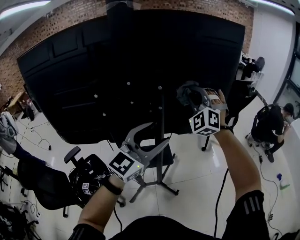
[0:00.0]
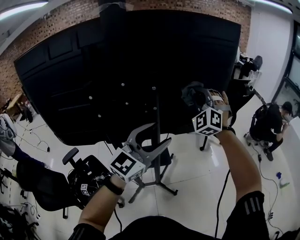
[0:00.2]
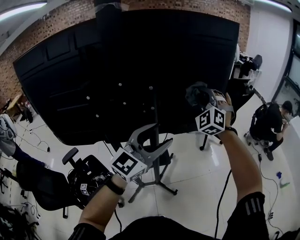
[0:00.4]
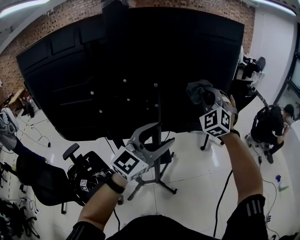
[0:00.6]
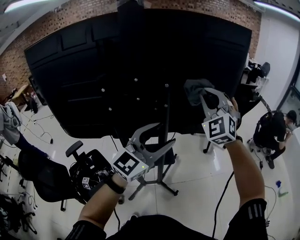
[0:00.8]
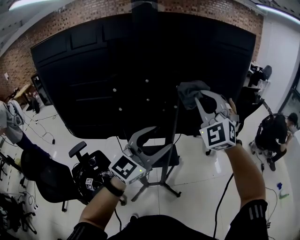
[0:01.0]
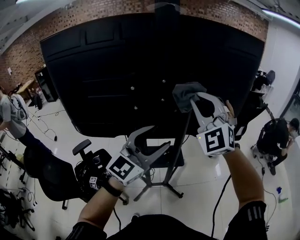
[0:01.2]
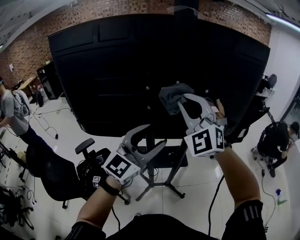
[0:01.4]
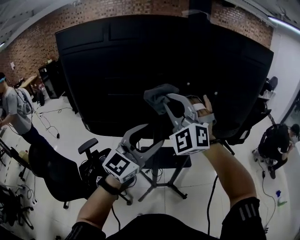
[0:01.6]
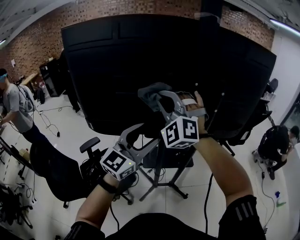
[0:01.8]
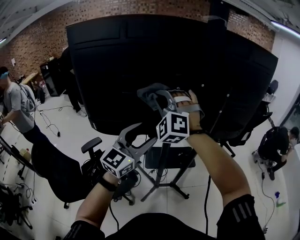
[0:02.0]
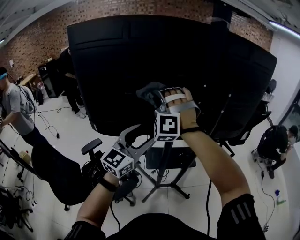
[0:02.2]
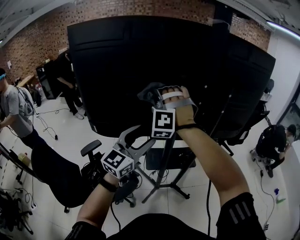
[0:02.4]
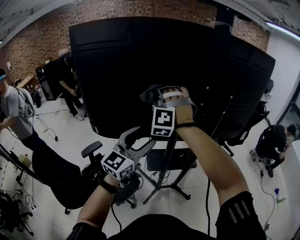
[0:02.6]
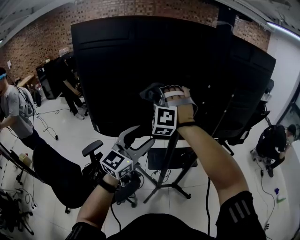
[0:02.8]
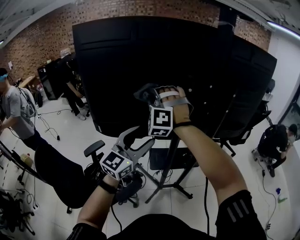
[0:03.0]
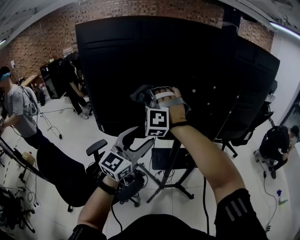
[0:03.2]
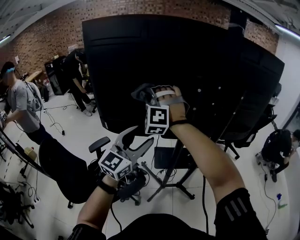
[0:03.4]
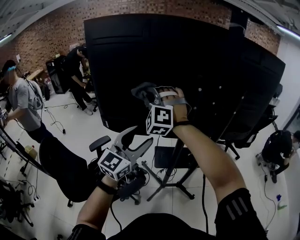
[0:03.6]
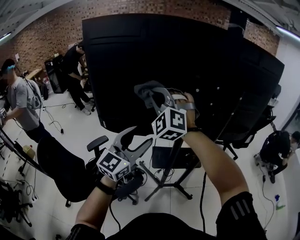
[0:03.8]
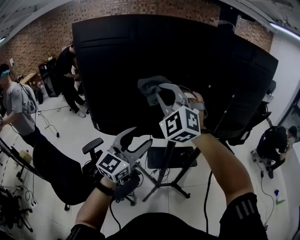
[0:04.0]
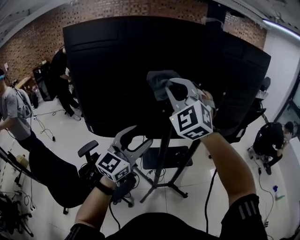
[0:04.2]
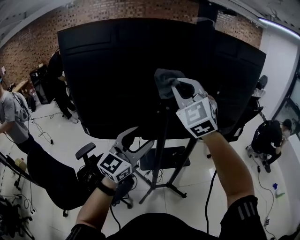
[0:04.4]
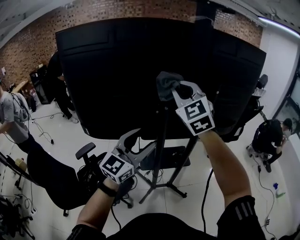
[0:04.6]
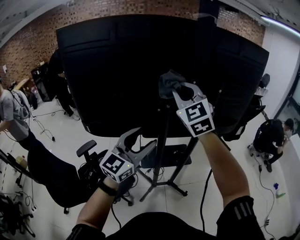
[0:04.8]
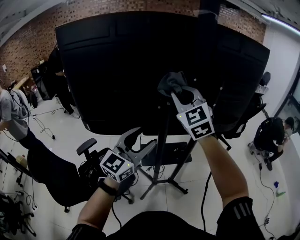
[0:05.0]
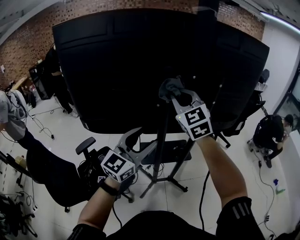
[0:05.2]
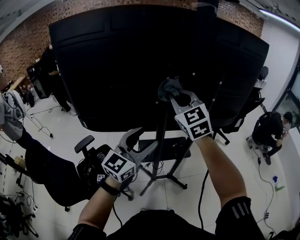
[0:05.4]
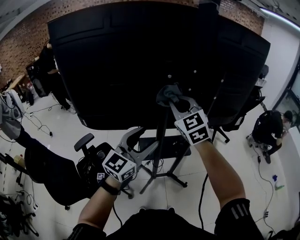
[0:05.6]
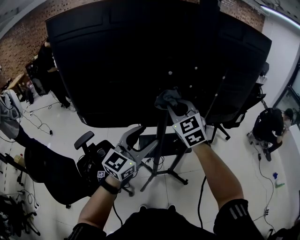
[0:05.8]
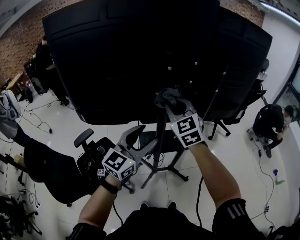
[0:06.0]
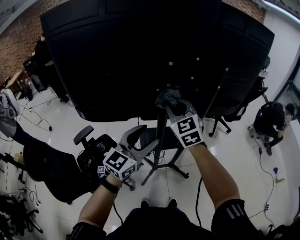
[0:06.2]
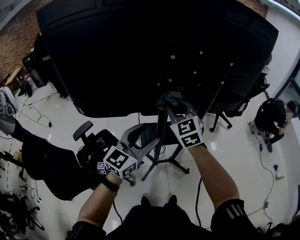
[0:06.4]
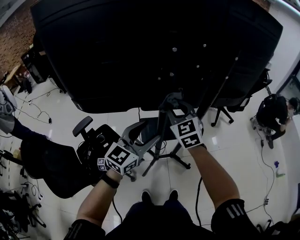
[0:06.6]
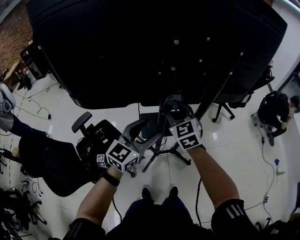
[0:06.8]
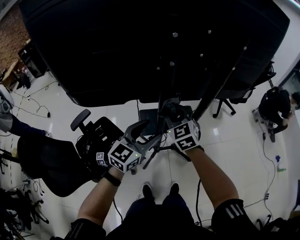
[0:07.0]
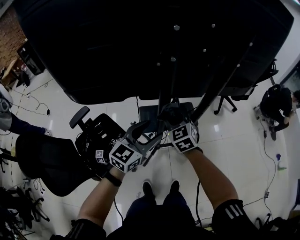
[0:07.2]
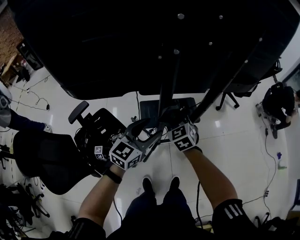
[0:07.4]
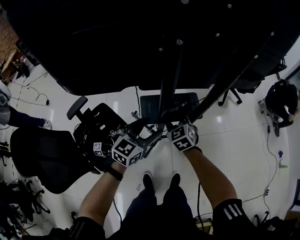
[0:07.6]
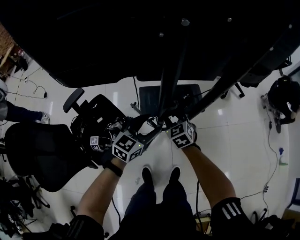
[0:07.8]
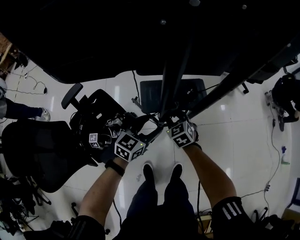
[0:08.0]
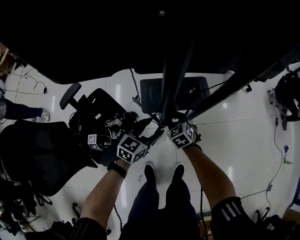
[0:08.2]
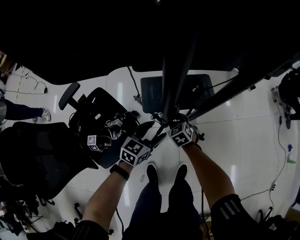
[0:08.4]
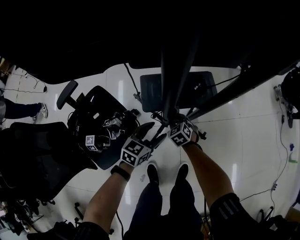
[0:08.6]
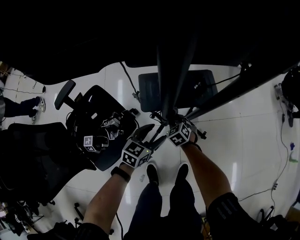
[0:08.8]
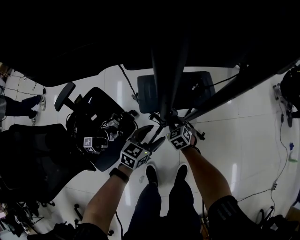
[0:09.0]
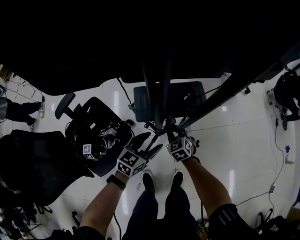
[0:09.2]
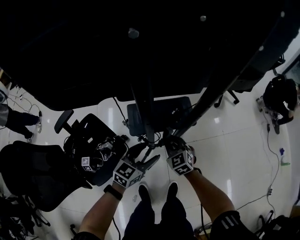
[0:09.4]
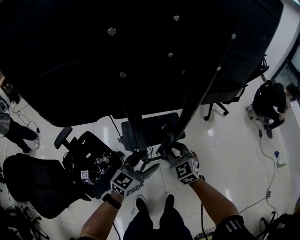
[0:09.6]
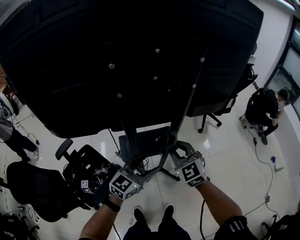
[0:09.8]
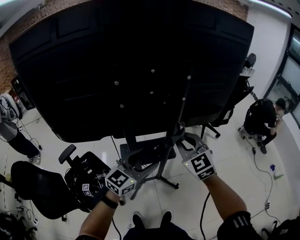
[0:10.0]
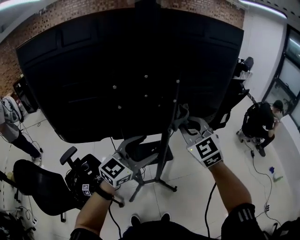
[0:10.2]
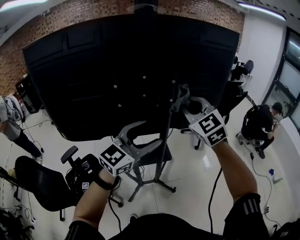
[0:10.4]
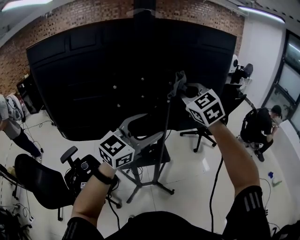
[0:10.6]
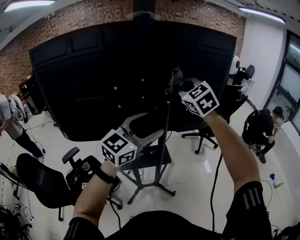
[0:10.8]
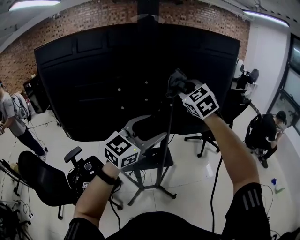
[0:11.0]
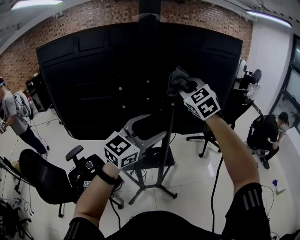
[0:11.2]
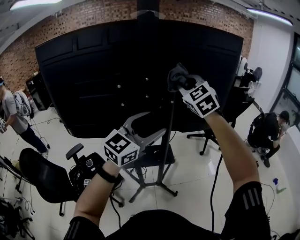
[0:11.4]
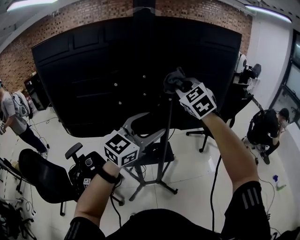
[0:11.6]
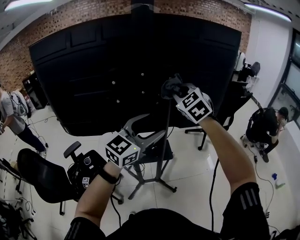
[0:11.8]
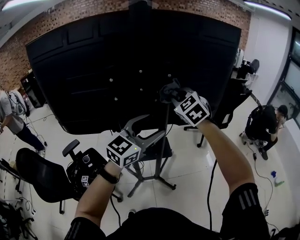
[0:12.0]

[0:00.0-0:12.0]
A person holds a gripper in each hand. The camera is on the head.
0:00.0 to 0:01.6: The right gripper shifts about 35 cm to the left and backward, and turns by about 20 degrees. Meanwhile the left gripper is displaced to the left and backward by some 20 cm.
0:01.6 to 0:03.0: The two grippers go some 15 cm to the left. The right gripper turns by roughly 30 degrees.
0:03.0 to 0:04.4: The left gripper goes roughly 5 cm to the right. Meanwhile the right gripper shifts roughly 20 cm to the right and upward, and twists some 40 degrees clockwise, seen from behind.
0:04.4 to 0:06.0: The left gripper moves downward, approximately 10 cm. Meanwhile the right gripper goes some 20 cm downward, and turns by roughly 20 degrees.
0:06.0 to 0:07.6: Both grippers travel together downward, roughly 30 cm. The right gripper swivels approximately 30 degrees, while the left gripper changes its angle by about 20 degrees.
0:07.6 to 0:09.0: The grippers both shift downward by approximately 30 cm. The right gripper closes.
0:09.0 to 0:10.4: The grippers both shift upward by approximately 70 cm. The right gripper angles its fingers upward, by some 40 degrees; the left gripper angles its fingers upward, by approximately 30 degrees.
0:10.4 to 0:12.0: The right gripper goes approximately 5 cm forward.

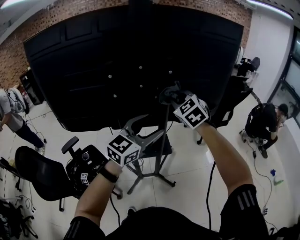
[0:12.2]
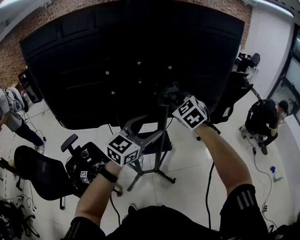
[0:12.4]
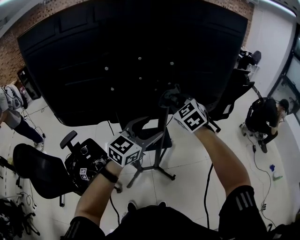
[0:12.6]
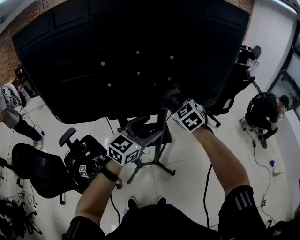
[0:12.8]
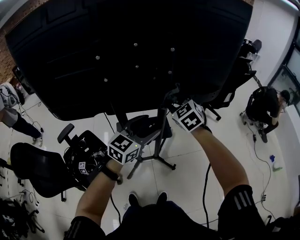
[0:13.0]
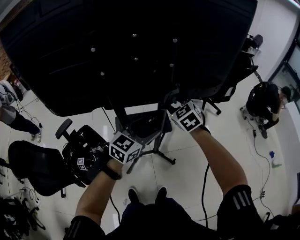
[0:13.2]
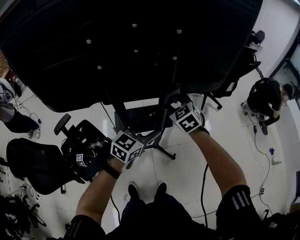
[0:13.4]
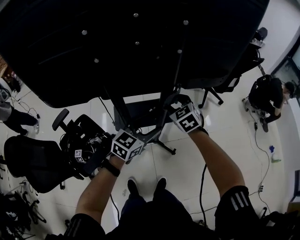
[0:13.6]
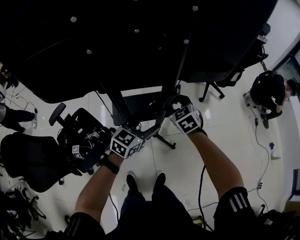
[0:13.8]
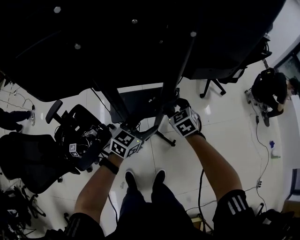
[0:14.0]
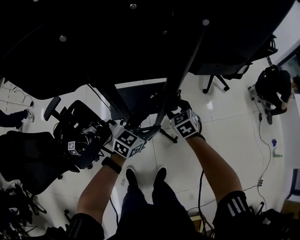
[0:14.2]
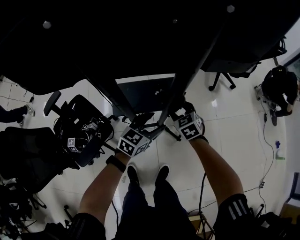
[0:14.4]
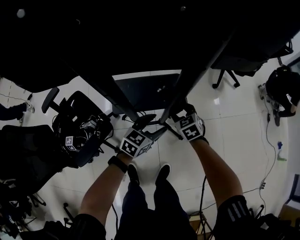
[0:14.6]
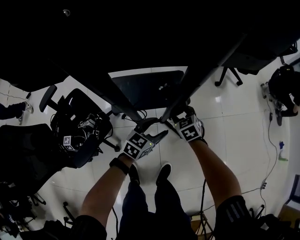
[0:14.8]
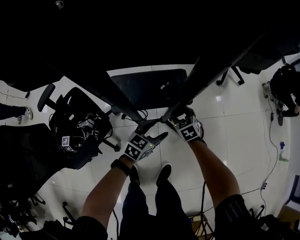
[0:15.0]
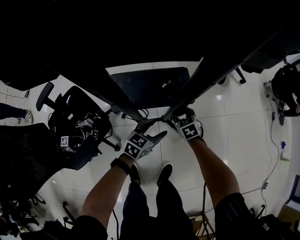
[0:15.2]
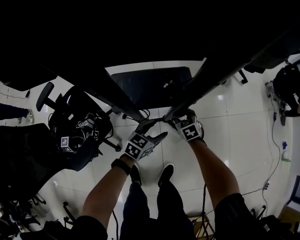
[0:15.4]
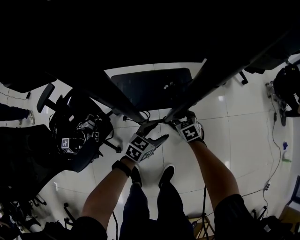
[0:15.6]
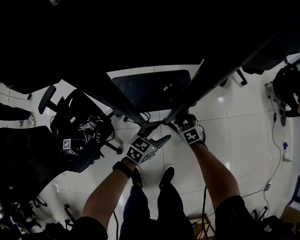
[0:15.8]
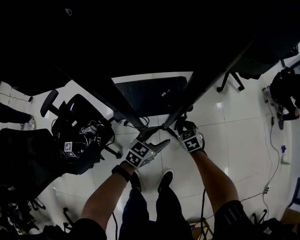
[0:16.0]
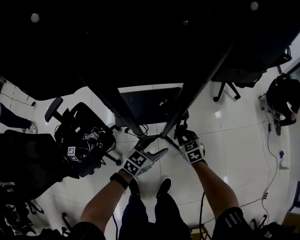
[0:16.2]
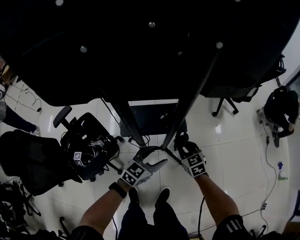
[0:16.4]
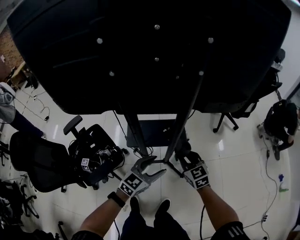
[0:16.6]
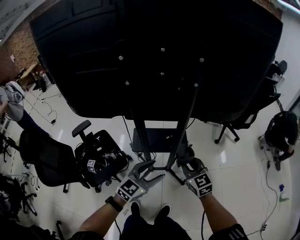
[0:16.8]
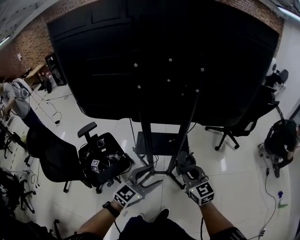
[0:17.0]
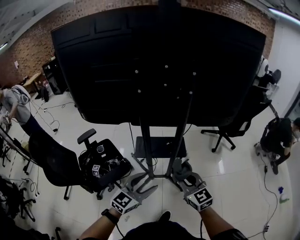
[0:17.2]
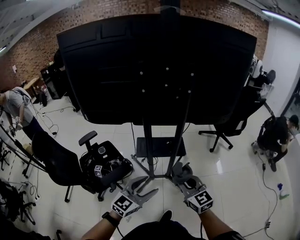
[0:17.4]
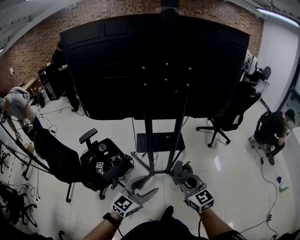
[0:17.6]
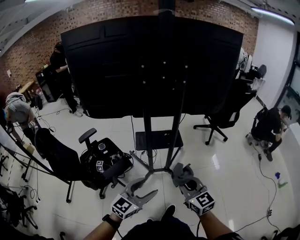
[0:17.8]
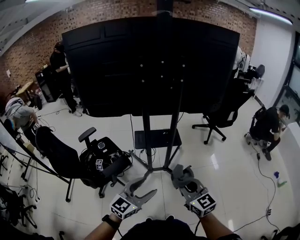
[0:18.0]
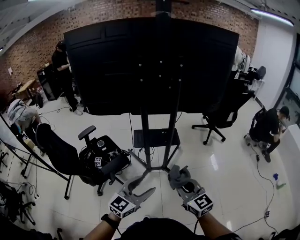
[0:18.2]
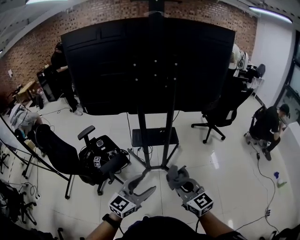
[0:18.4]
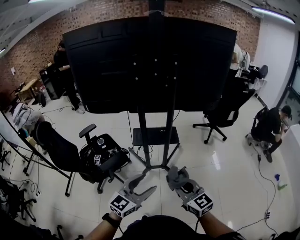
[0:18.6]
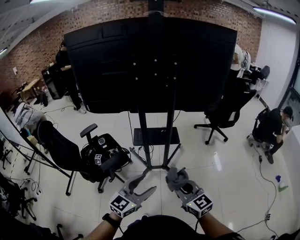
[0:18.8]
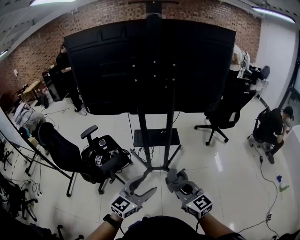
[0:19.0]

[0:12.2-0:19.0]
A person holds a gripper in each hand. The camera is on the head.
0:12.2 to 0:13.6: The grippers both shift downward by about 25 cm. The right gripper opens up. The left gripper rotates some 20 degrees.
0:13.6 to 0:15.0: The grippers both shift downward by some 35 cm.
0:15.0 to 0:16.2: Both grippers travel together upward, about 5 cm. The right gripper closes up.
0:16.2 to 0:17.6: The left gripper shifts some 50 cm backward and upward, and rotates some 30 degrees. Meanwhile the right gripper moves upward and backward, approximately 50 cm, and angles its fingers upward, by approximately 30 degrees.
0:17.6 to 0:19.0: The left gripper shifts approximately 10 cm backward and to the right. Meanwhile the right gripper is displaced backward by roughly 10 cm.

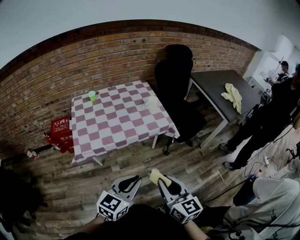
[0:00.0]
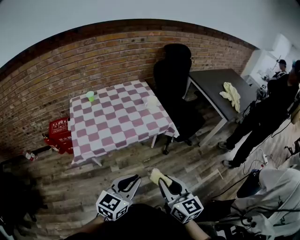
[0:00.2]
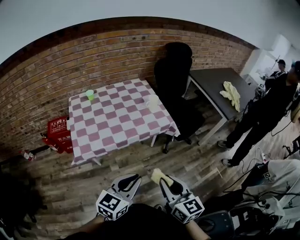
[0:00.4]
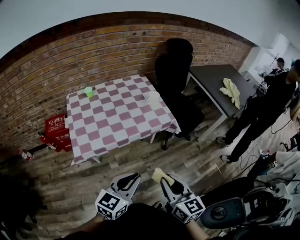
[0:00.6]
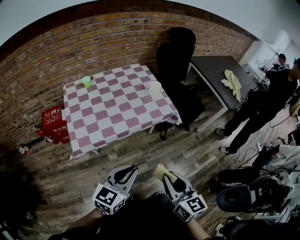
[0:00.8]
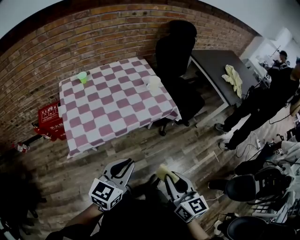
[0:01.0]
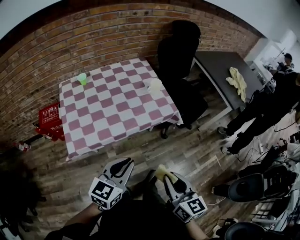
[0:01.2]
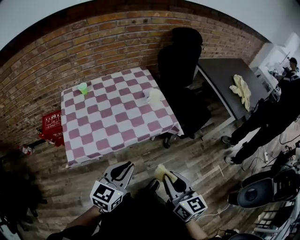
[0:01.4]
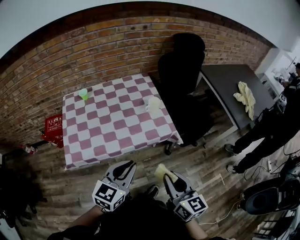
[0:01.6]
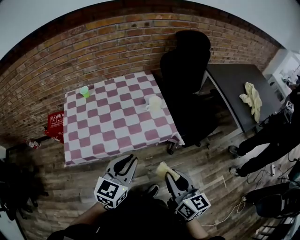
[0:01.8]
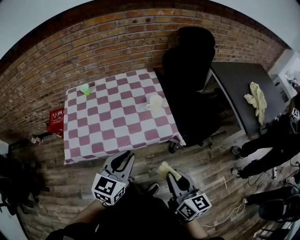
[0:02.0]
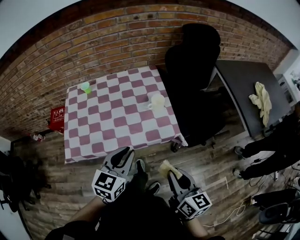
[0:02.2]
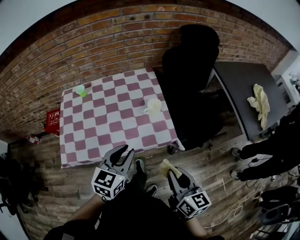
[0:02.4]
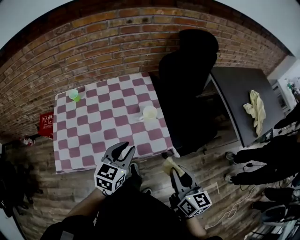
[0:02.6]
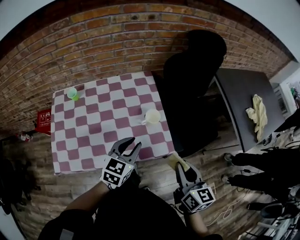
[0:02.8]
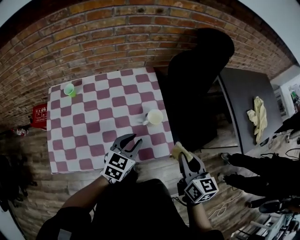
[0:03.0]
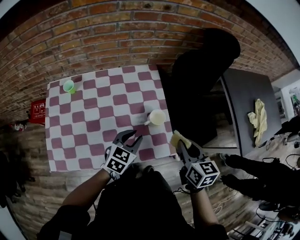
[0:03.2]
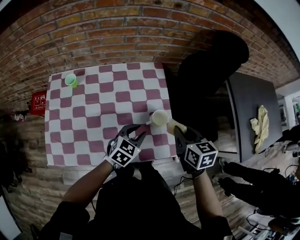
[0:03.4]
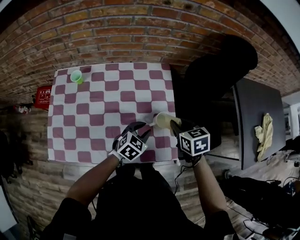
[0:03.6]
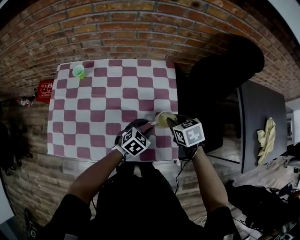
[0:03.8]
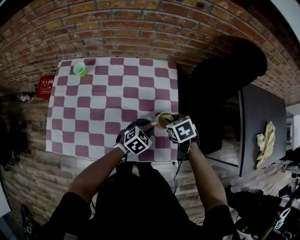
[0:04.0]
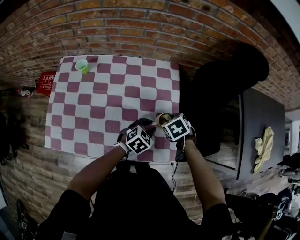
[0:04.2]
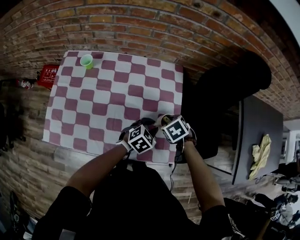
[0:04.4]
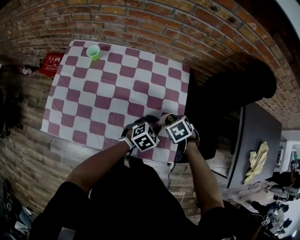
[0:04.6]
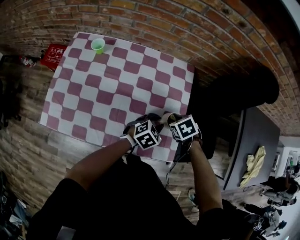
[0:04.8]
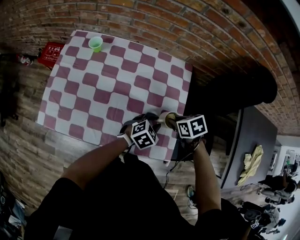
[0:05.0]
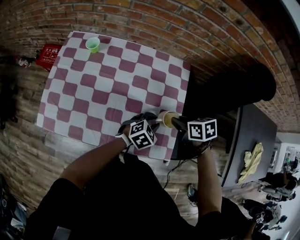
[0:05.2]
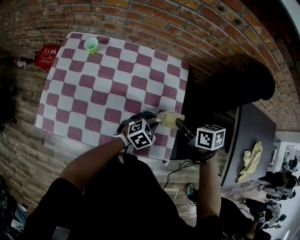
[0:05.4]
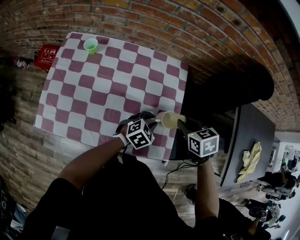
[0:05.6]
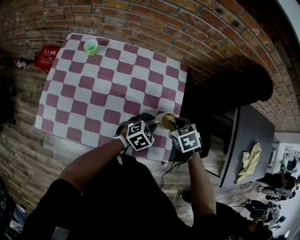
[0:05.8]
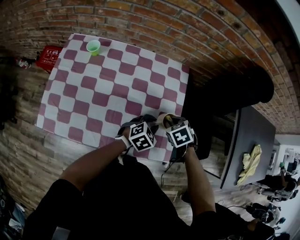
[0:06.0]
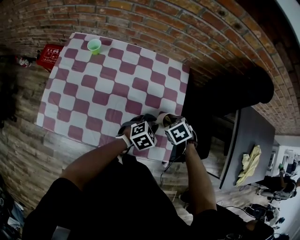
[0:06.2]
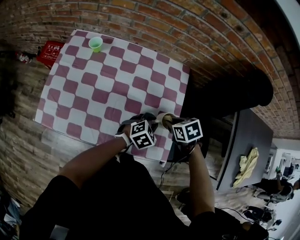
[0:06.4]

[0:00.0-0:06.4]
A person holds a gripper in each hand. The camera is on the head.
0:00.0 to 0:01.6: Both grippers travel together forward, roughly 20 cm.
0:01.6 to 0:03.2: The right gripper is displaced forward by some 40 cm, and turns by about 20 degrees, while the left gripper moves forward and downward, roughly 40 cm.
0:03.2 to 0:04.8: The right gripper is displaced downward by approximately 20 cm, and tilts its fingers approximately 50 degrees downward; the left gripper is displaced downward by about 10 cm.
0:04.8 to 0:06.4: The right gripper goes upward and returns, some 10 cm each way.
